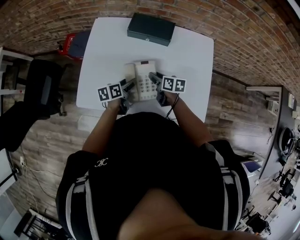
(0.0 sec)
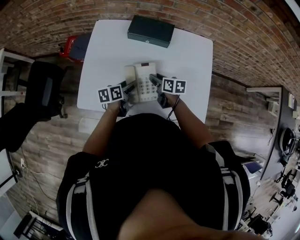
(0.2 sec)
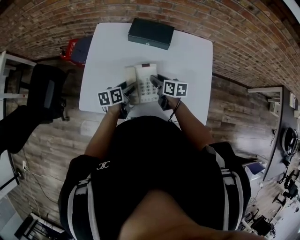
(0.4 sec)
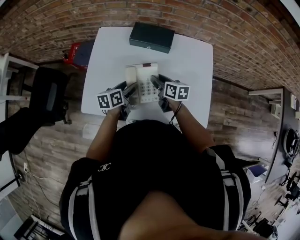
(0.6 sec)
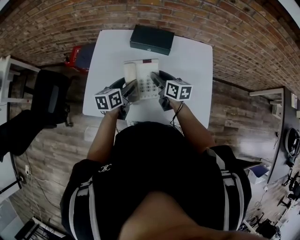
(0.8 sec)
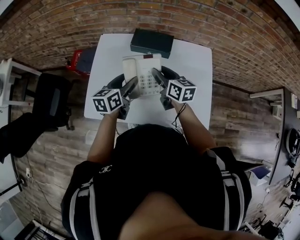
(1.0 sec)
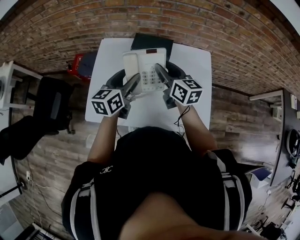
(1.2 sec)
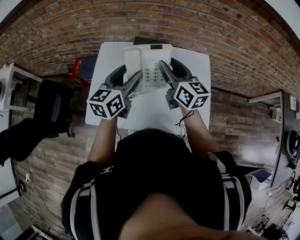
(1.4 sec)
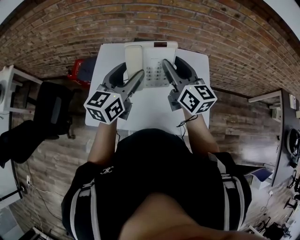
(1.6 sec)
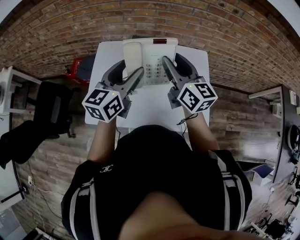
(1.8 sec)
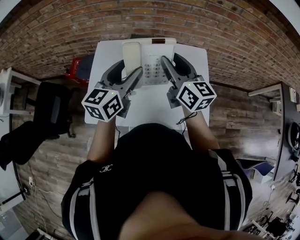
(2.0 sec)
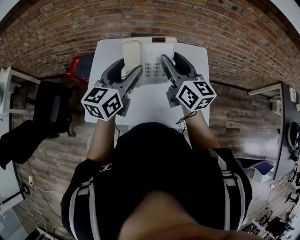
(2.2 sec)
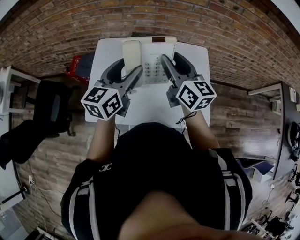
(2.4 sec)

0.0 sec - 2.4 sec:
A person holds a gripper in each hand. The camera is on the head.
0.0 sec - 1.2 sec: Both grippers travel together upward, roughly 25 cm. The right gripper swivels about 30 degrees. Meanwhile the left gripper swivels about 40 degrees.
1.2 sec - 2.4 sec: The grippers both shift upward by about 10 cm.

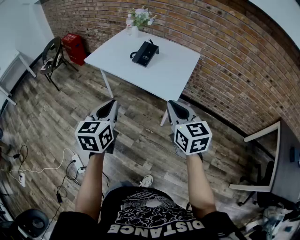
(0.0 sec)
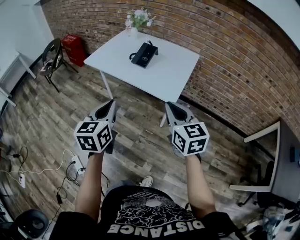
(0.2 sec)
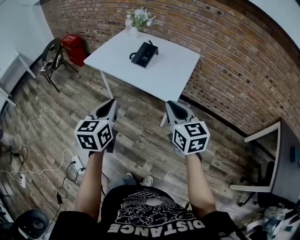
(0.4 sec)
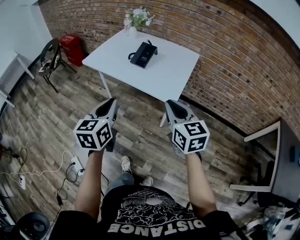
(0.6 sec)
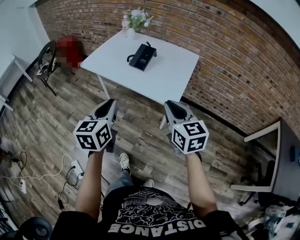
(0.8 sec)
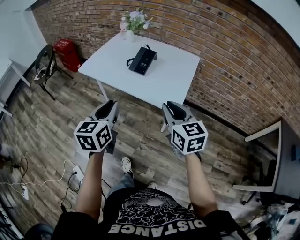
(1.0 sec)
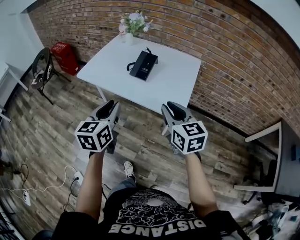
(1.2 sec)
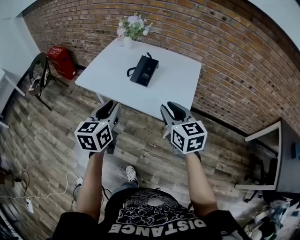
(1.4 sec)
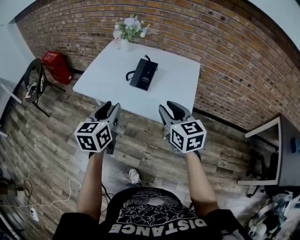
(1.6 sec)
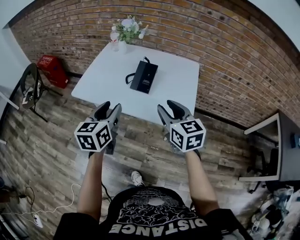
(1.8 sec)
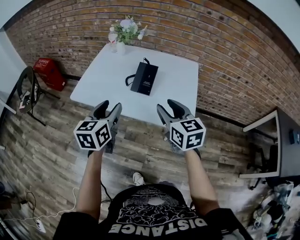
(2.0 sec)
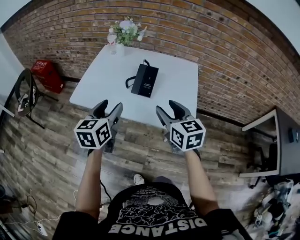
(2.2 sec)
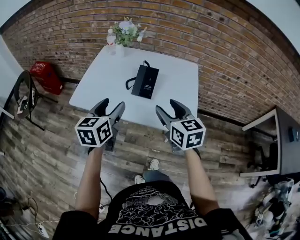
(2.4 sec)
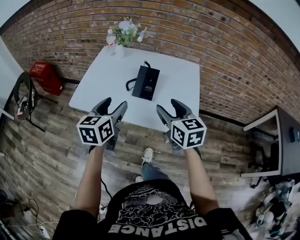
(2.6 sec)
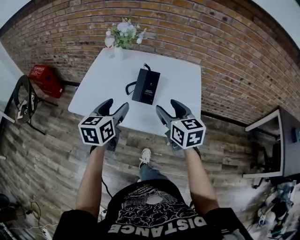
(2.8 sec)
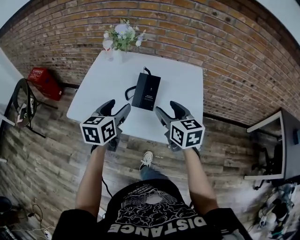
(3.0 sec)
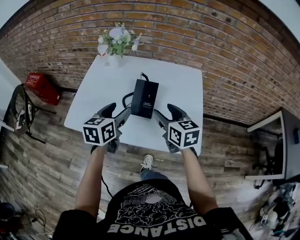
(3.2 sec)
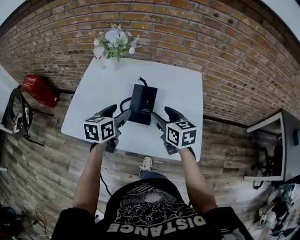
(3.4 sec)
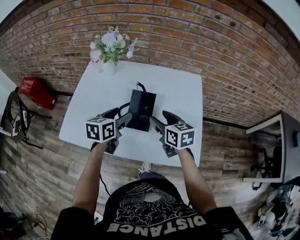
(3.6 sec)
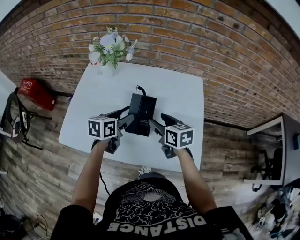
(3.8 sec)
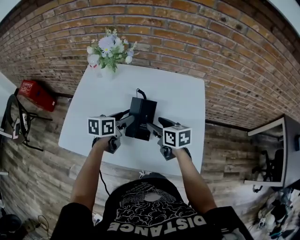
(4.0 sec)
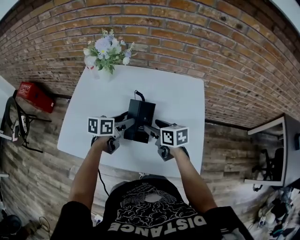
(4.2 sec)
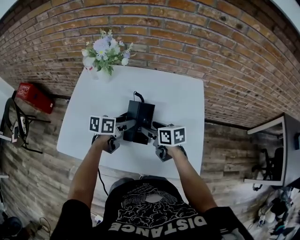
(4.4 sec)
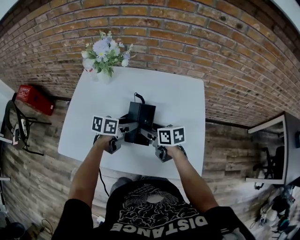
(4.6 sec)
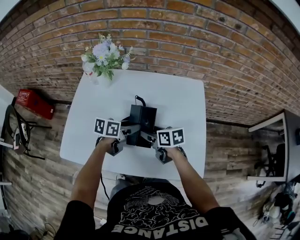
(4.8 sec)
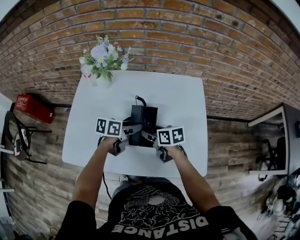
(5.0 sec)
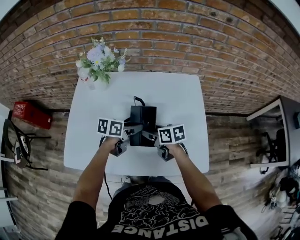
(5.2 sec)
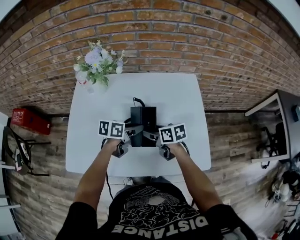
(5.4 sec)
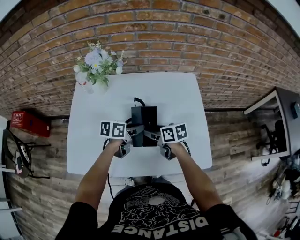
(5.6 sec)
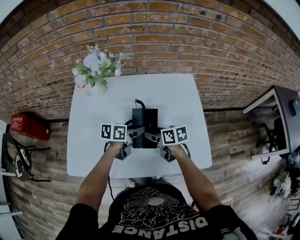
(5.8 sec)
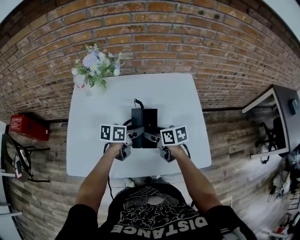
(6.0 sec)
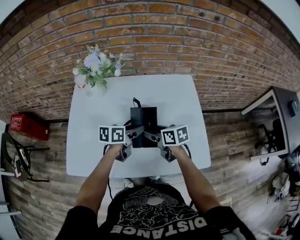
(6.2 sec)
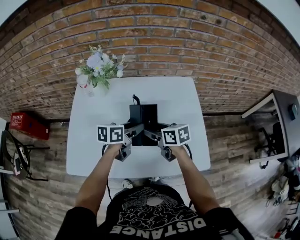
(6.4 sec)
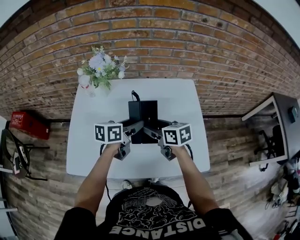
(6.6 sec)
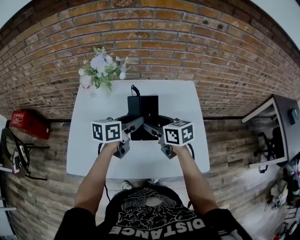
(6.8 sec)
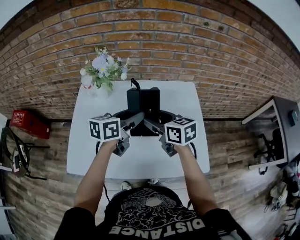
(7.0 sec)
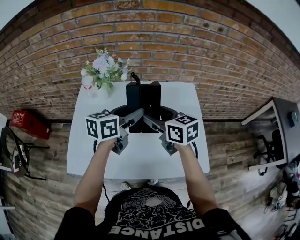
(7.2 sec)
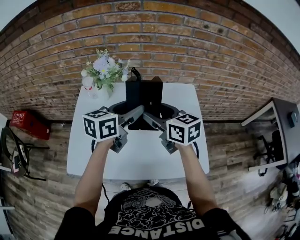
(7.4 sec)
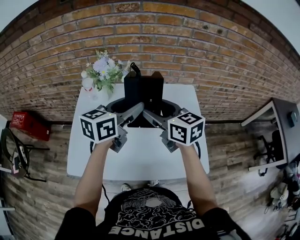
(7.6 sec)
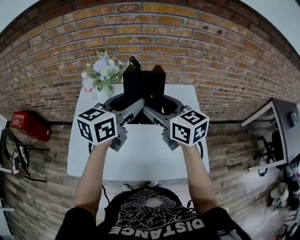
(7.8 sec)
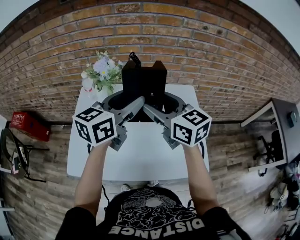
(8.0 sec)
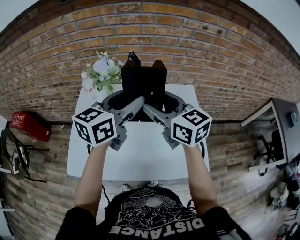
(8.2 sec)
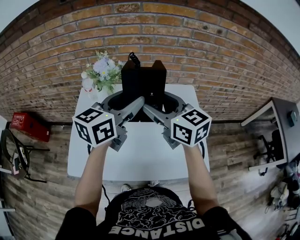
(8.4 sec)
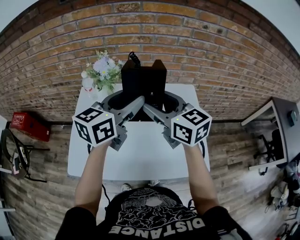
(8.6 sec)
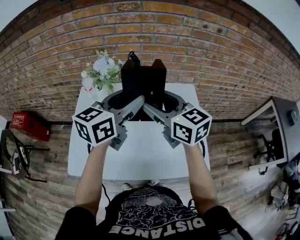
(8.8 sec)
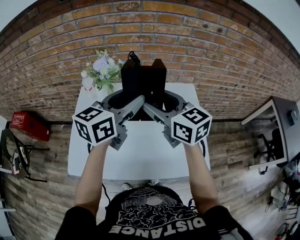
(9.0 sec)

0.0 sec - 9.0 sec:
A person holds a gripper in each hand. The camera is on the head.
0.0 sec - 1.6 sec: Both grippers move forward, approximately 25 cm. The right gripper opens up. Meanwhile the left gripper opens.
1.6 sec - 3.0 sec: The two grippers go roughly 15 cm forward. The left gripper opens up. The right gripper opens up.
3.0 sec - 4.4 sec: The right gripper travels downward and forward by some 20 cm, and rotates about 30 degrees. The left gripper is displaced forward and downward by approximately 25 cm, and swivels roughly 40 degrees.
4.4 sec - 6.0 sec: The grippers make only small movements.
6.0 sec - 7.6 sec: The grippers both shift upward by approximately 25 cm. The right gripper swivels approximately 30 degrees; the left gripper swivels roughly 30 degrees.
7.6 sec - 9.0 sec: The grippers stay close to where they were, moving slightly.

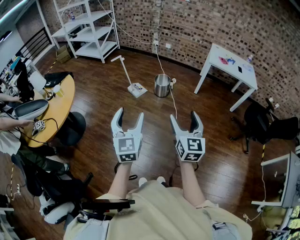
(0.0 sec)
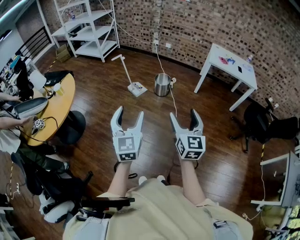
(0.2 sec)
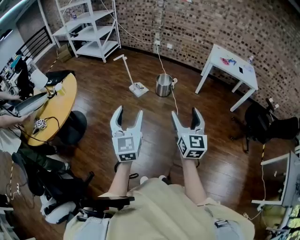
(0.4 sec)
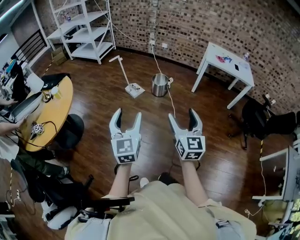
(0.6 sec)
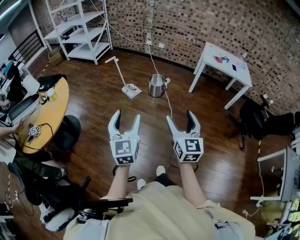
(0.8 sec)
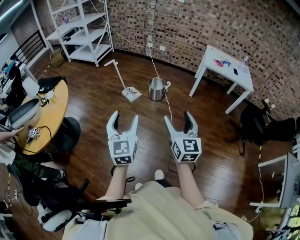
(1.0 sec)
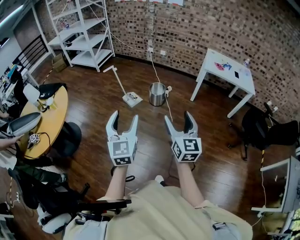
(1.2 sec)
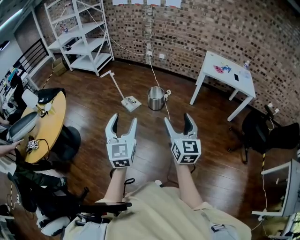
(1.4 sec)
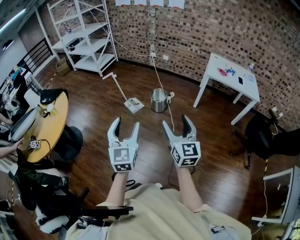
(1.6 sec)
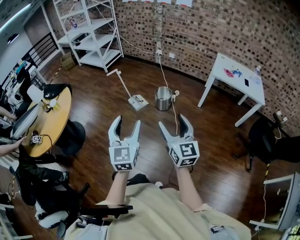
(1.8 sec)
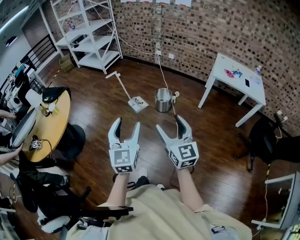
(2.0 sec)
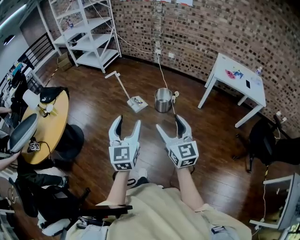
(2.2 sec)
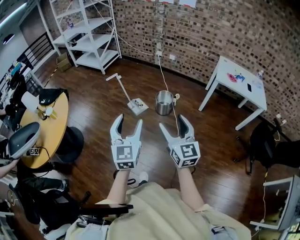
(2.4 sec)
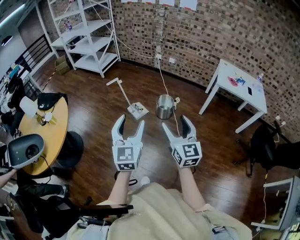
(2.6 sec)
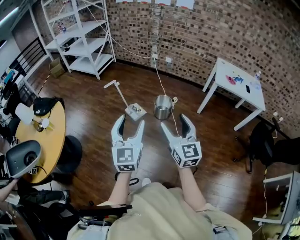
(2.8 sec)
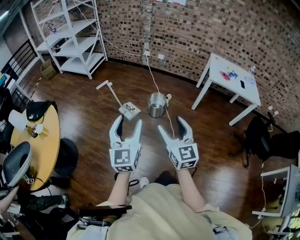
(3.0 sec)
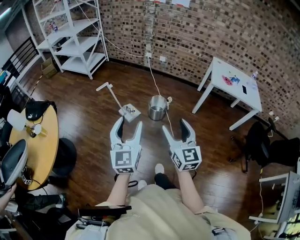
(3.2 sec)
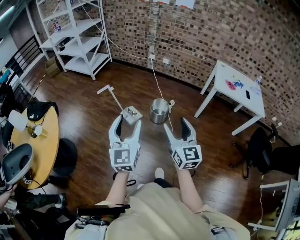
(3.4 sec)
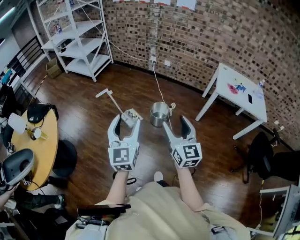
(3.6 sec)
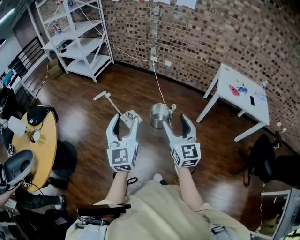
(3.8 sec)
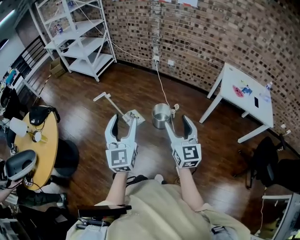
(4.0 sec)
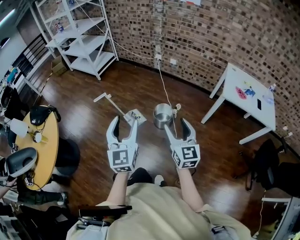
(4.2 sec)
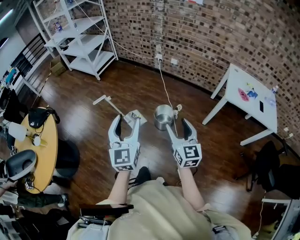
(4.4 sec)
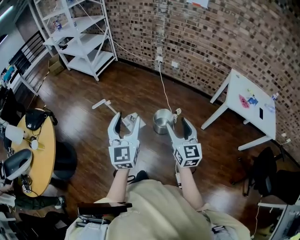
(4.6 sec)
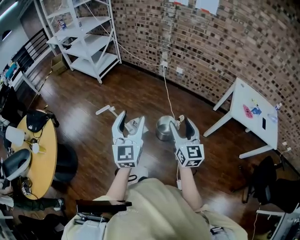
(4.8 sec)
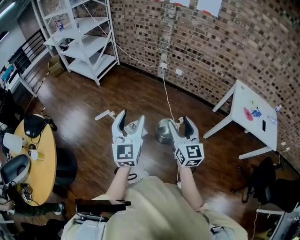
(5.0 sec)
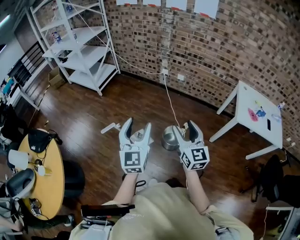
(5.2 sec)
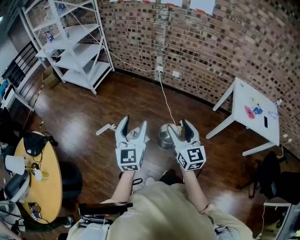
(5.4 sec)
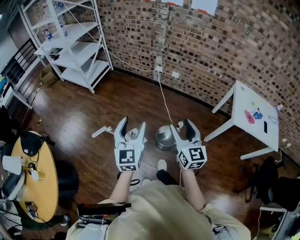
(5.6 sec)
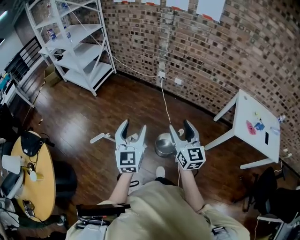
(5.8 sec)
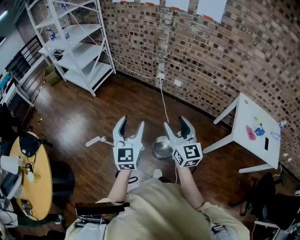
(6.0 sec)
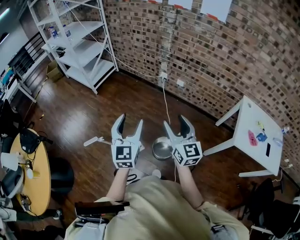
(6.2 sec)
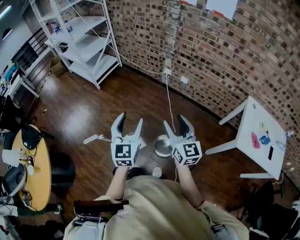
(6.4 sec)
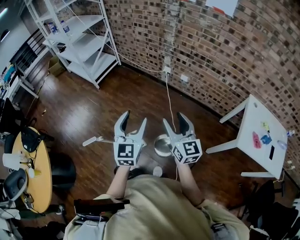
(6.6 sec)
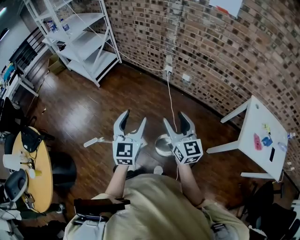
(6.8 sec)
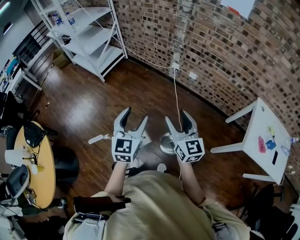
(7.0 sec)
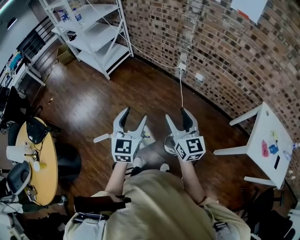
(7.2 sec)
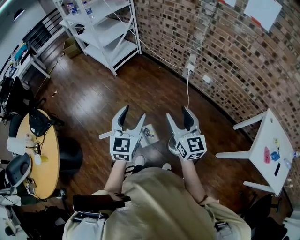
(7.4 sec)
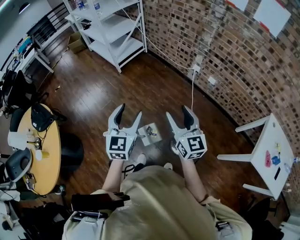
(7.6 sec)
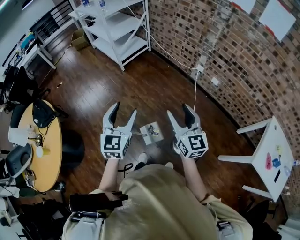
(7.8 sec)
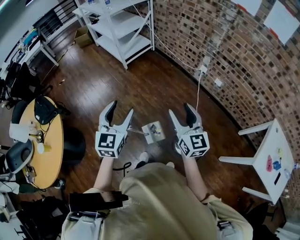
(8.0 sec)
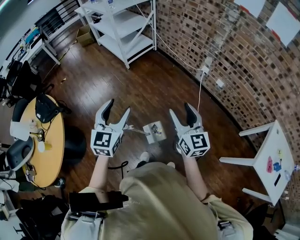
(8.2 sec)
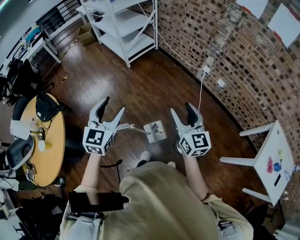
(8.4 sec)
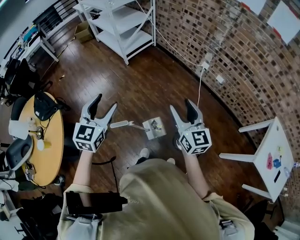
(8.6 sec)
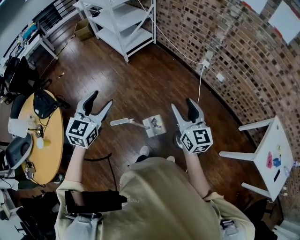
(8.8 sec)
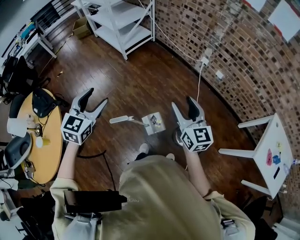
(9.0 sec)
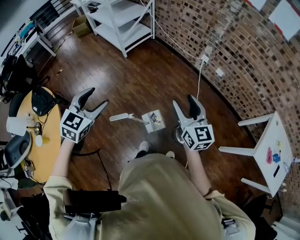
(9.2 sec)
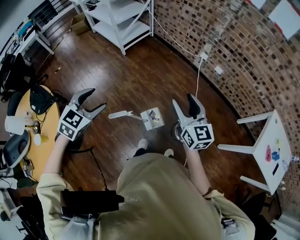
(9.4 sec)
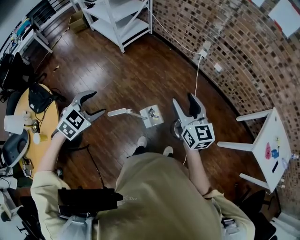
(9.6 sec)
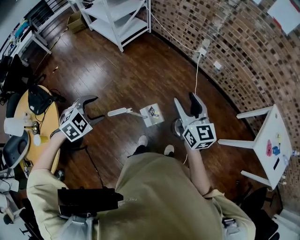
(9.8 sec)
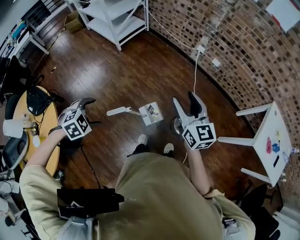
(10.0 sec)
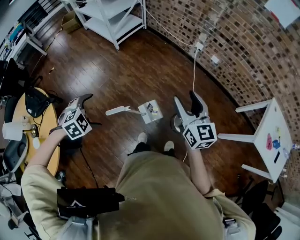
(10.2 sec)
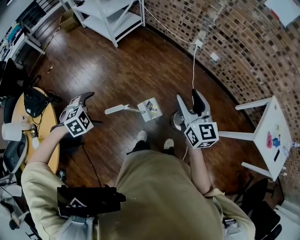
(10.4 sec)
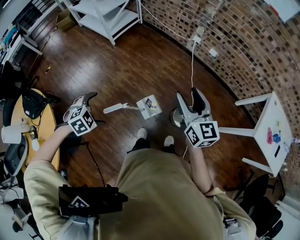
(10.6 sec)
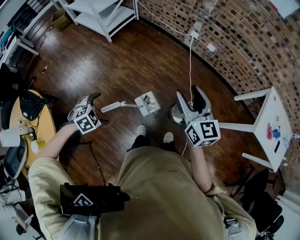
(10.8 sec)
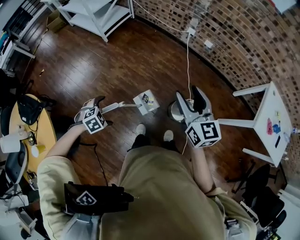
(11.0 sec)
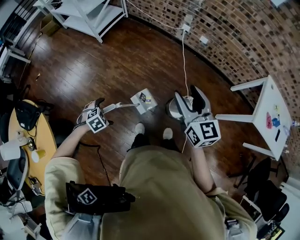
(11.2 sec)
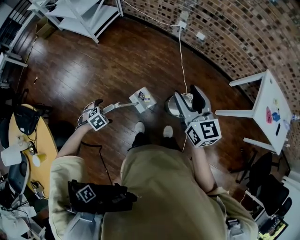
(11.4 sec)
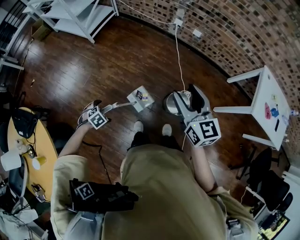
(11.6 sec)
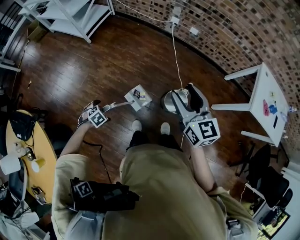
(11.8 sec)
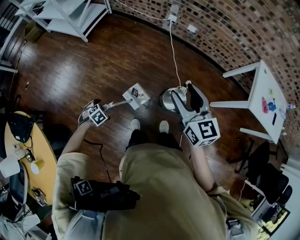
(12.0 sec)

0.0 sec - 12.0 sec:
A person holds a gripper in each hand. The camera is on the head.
0.0 sec - 1.6 sec: Both grippers travel together forward and to the right, about 15 cm.
1.6 sec - 3.0 sec: The left gripper travels forward by approximately 20 cm. Meanwhile the right gripper heads forward and to the left, covering approximately 20 cm.
3.0 sec - 4.4 sec: Both grippers move forward and to the right, approximately 25 cm.
4.4 sec - 6.0 sec: Both grippers move forward, some 35 cm.
6.0 sec - 7.6 sec: The left gripper travels to the left and forward by approximately 20 cm. Meanwhile the right gripper shifts roughly 20 cm forward and to the left.
7.6 sec - 9.0 sec: The left gripper shifts about 20 cm to the left.
9.0 sec - 10.4 sec: The left gripper is displaced downward by some 15 cm, tilts its fingers about 50 degrees downward, and opens its fingers.
10.4 sec - 12.0 sec: The left gripper heads downward, covering approximately 25 cm.
